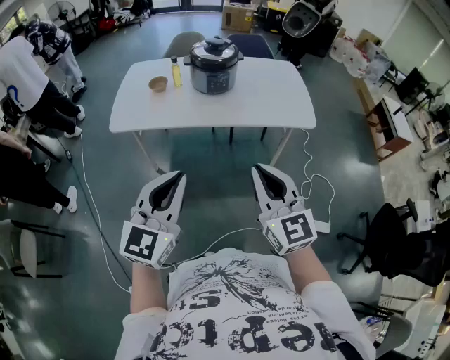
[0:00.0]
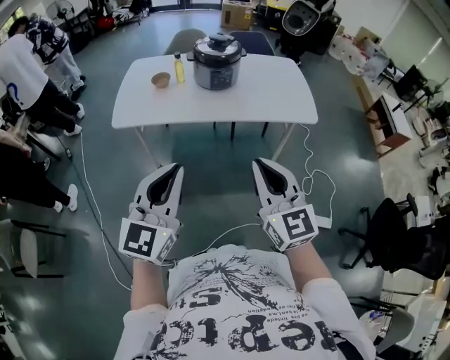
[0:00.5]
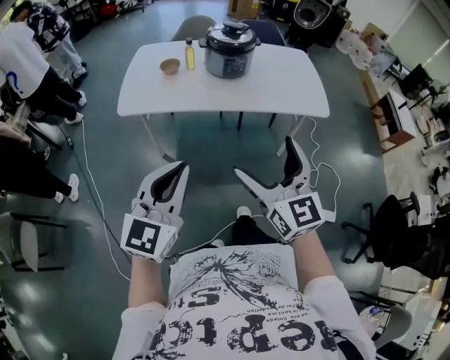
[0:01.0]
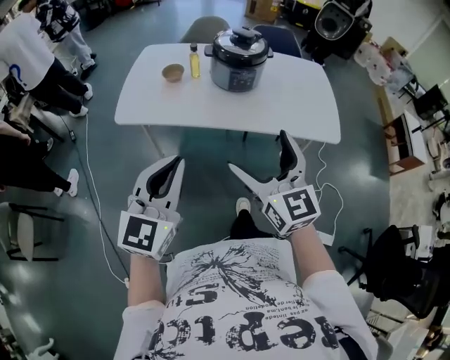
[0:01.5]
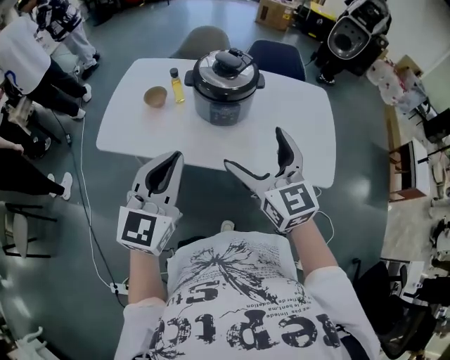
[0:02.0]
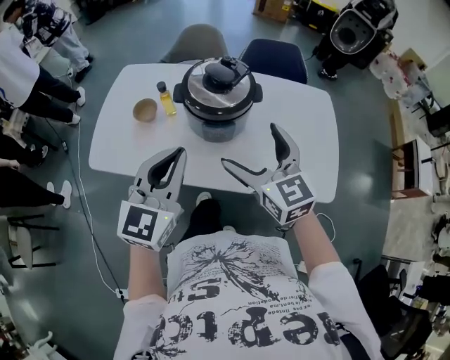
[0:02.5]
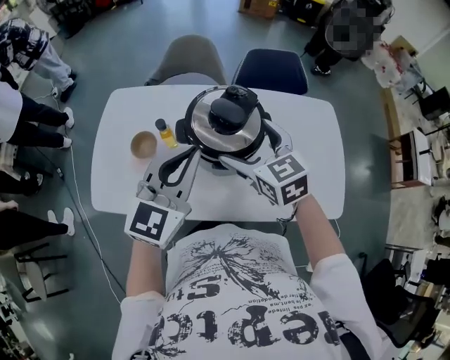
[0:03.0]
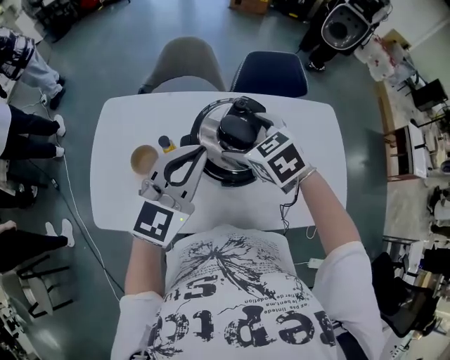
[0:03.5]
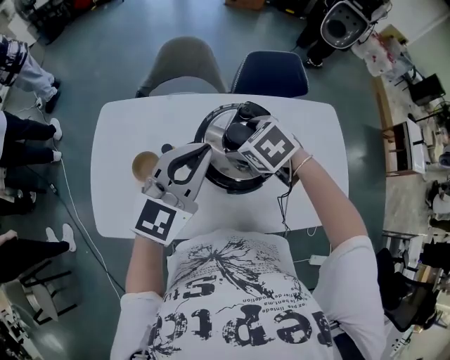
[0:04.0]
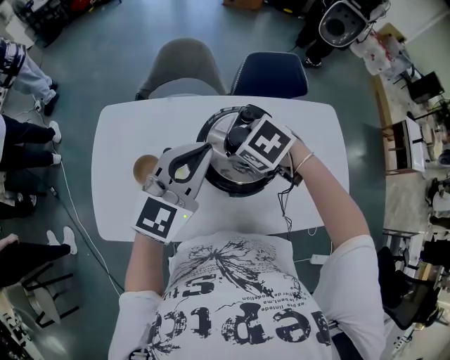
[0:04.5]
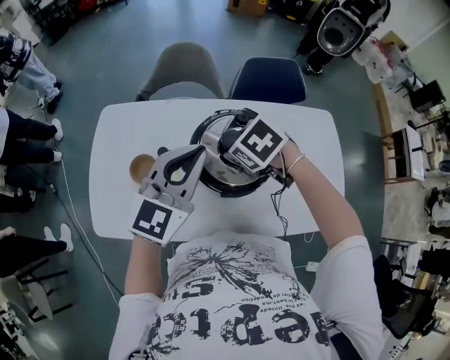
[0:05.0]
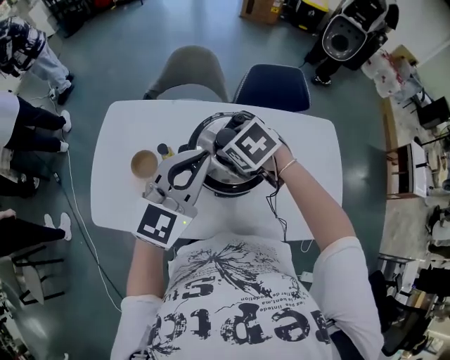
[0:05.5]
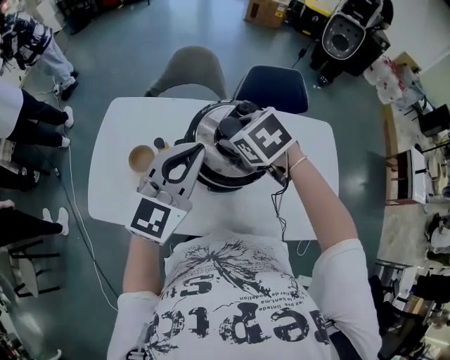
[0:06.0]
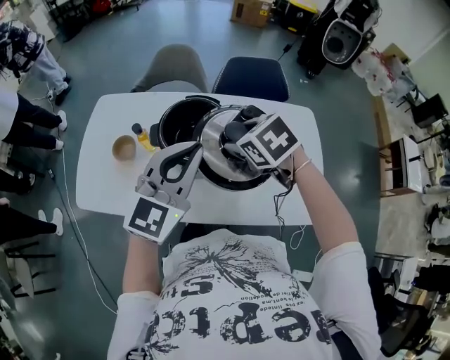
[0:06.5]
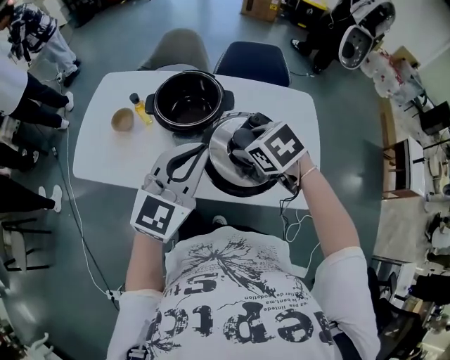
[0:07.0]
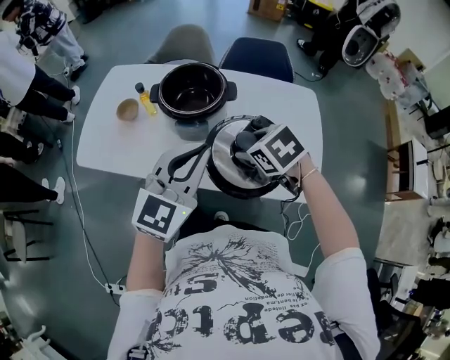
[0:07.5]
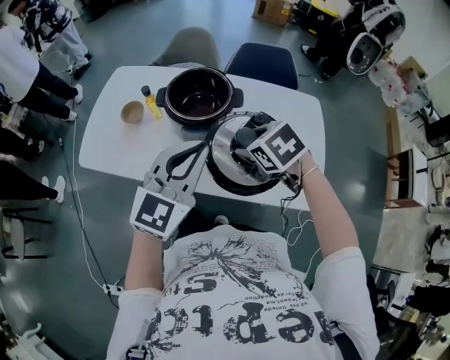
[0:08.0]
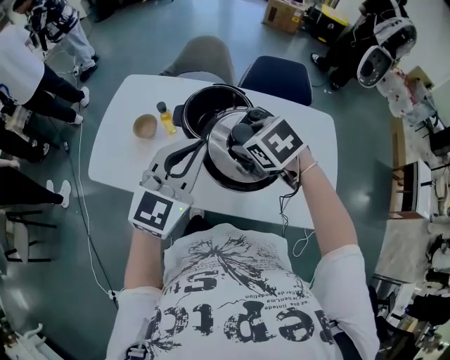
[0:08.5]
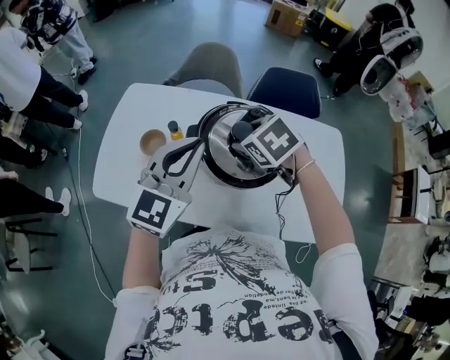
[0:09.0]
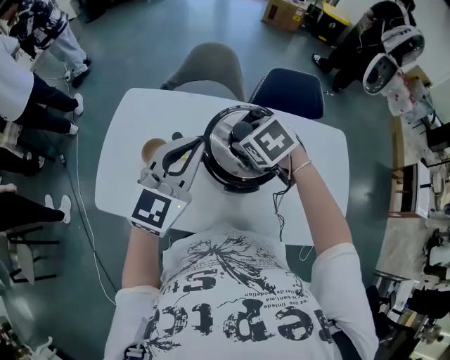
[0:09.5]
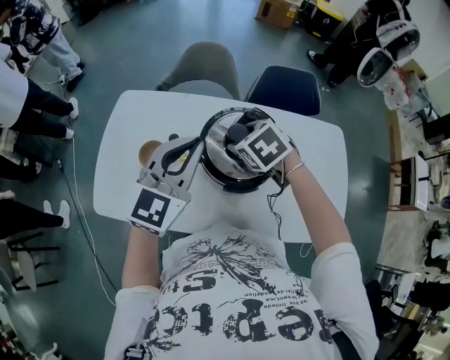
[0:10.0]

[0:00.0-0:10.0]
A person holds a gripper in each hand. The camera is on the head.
0:00.0 to 0:02.0: The grippers both shift forward by some 40 cm. The right gripper opens its fingers.
0:02.0 to 0:04.0: The pair of grippers is taken forward, approximately 40 cm. The right gripper points its fingers some 60 degrees further downward; the left gripper changes its angle by approximately 20 degrees.
0:04.0 to 0:06.0: The right gripper shifts approximately 10 cm upward. The left gripper shifts by roughly 5 cm.
0:06.0 to 0:08.0: Both grippers move backward and to the right, approximately 25 cm.
0:08.0 to 0:10.0: Both grippers move forward and to the left, approximately 30 cm.

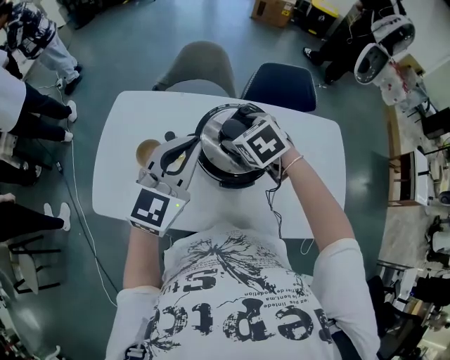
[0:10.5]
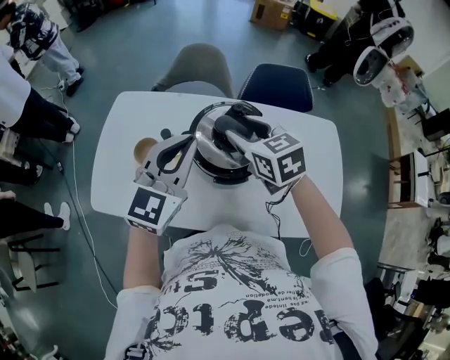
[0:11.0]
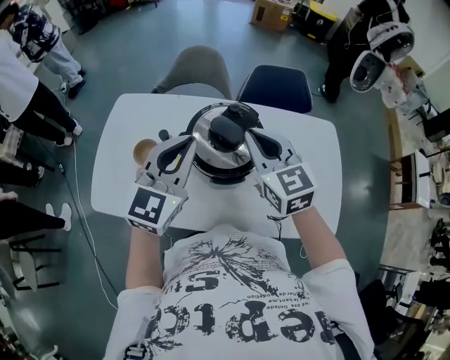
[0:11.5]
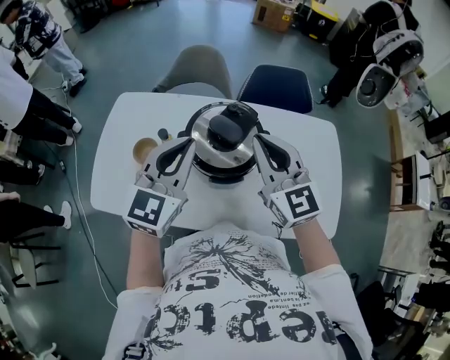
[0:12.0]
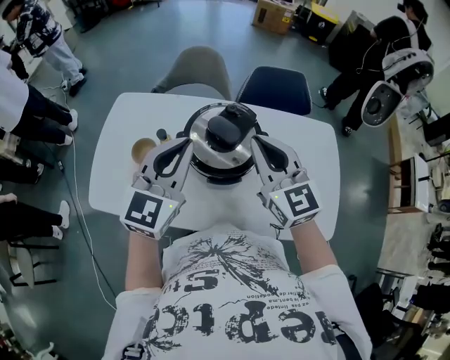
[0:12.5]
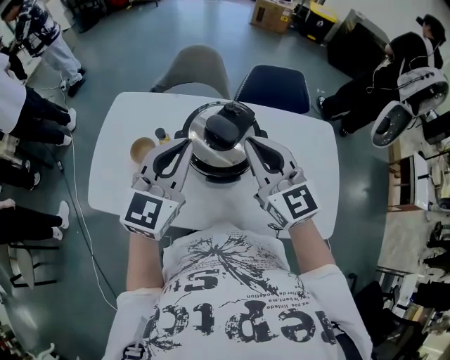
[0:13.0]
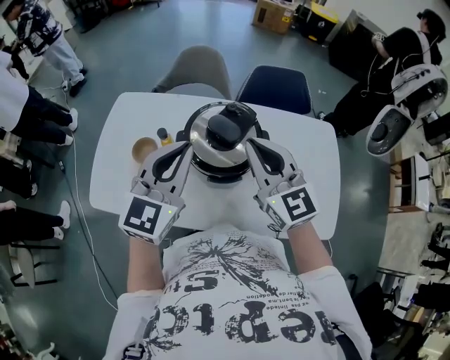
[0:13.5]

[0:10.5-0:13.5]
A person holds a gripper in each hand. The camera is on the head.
0:10.5 to 0:12.0: The right gripper travels upward, backward and to the right by about 15 cm, tilts its fingers approximately 50 degrees upward, and closes.
0:12.0 to 0:13.5: There are only small adjustments of the grippers.

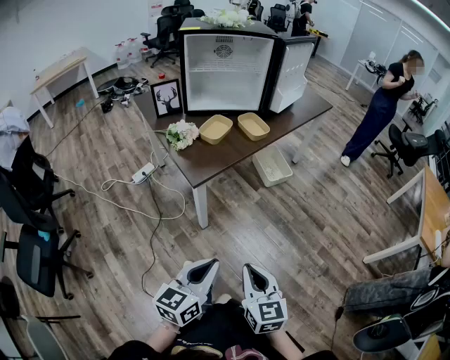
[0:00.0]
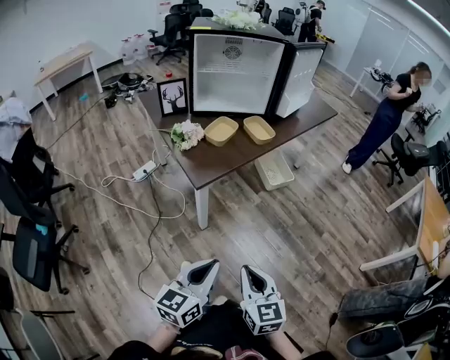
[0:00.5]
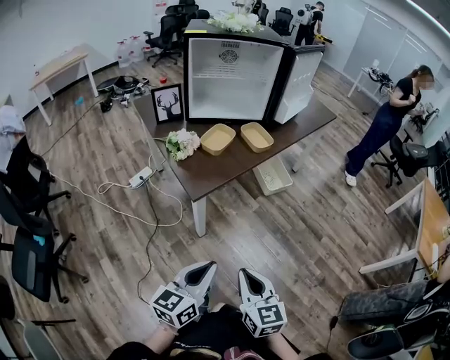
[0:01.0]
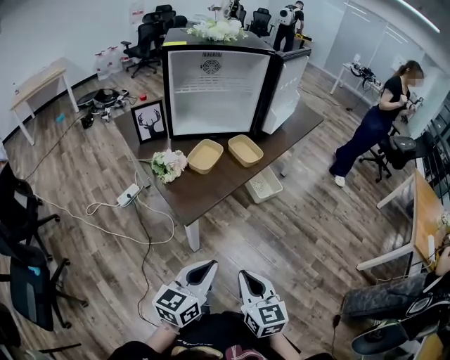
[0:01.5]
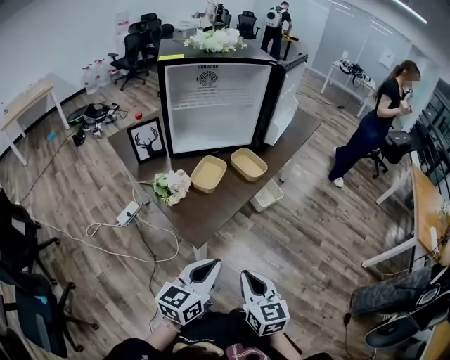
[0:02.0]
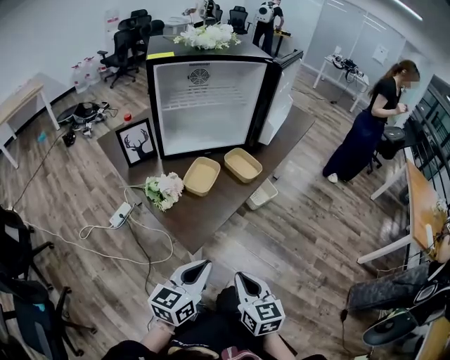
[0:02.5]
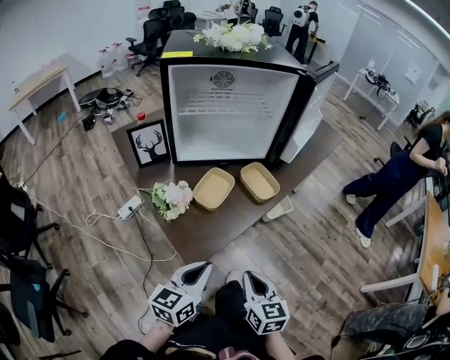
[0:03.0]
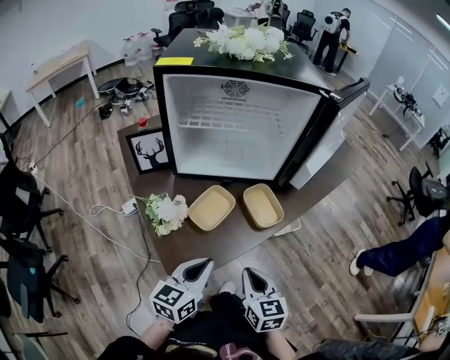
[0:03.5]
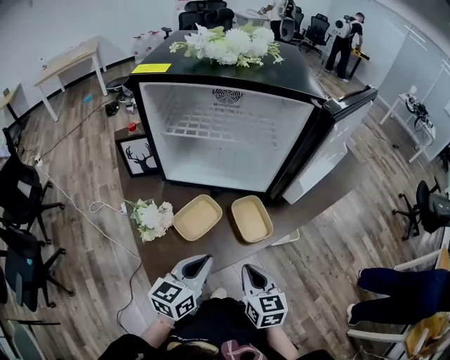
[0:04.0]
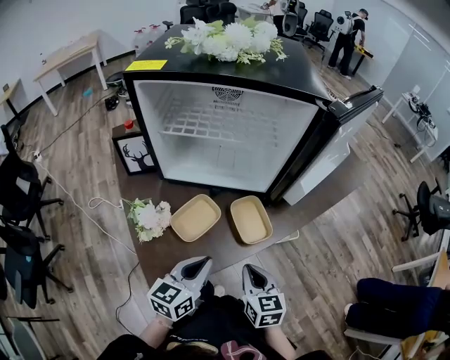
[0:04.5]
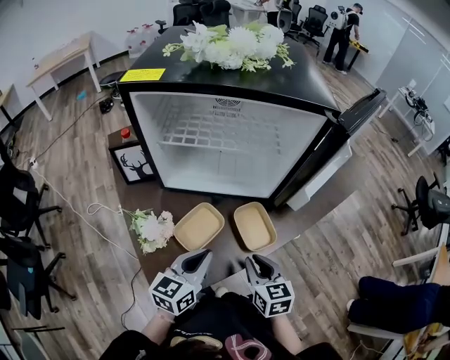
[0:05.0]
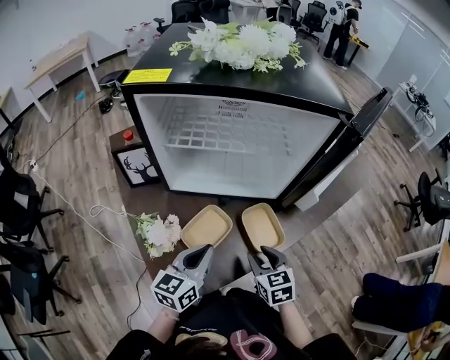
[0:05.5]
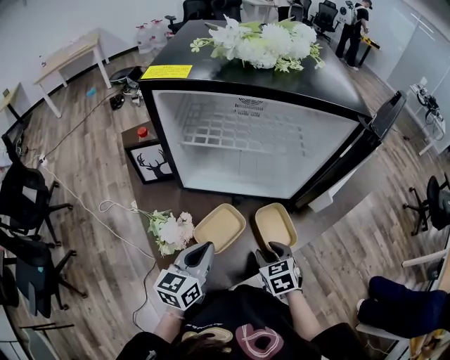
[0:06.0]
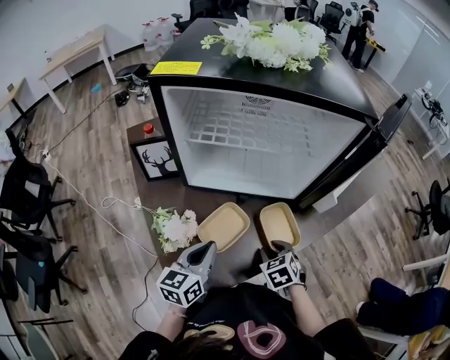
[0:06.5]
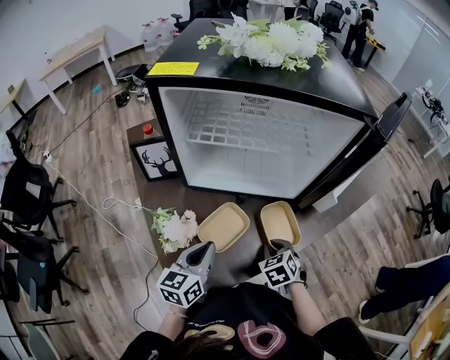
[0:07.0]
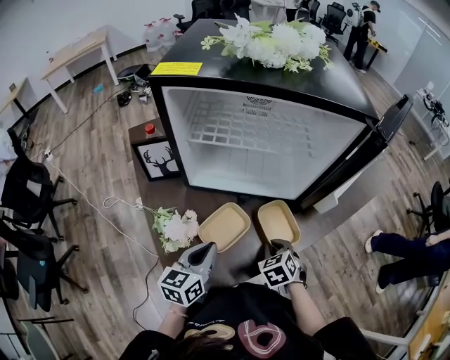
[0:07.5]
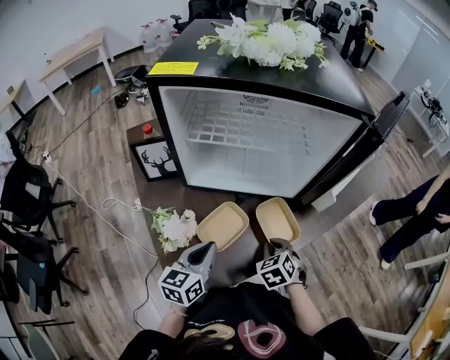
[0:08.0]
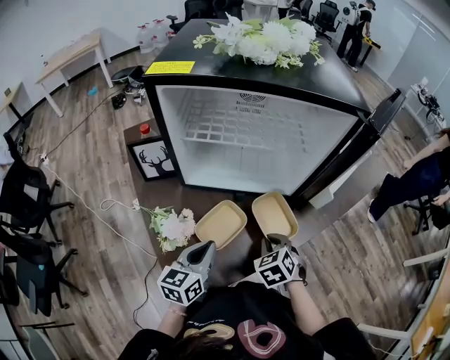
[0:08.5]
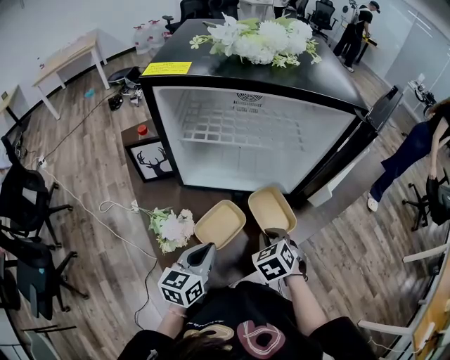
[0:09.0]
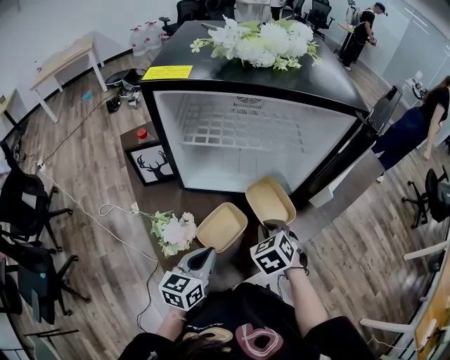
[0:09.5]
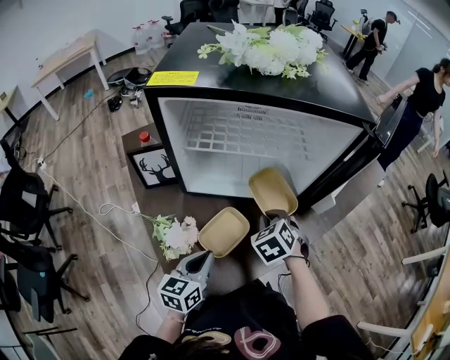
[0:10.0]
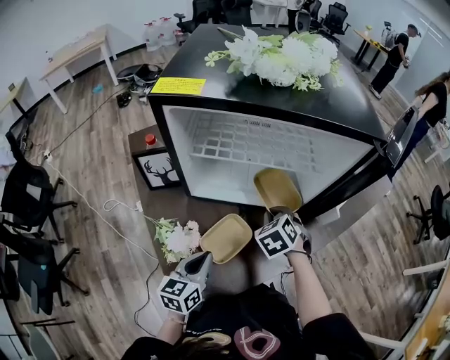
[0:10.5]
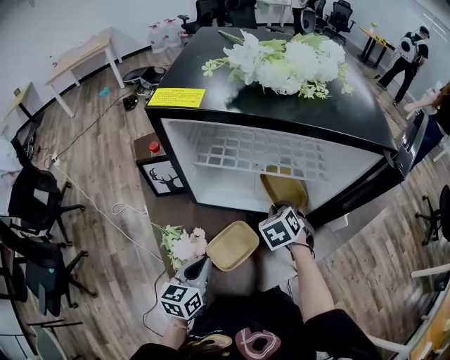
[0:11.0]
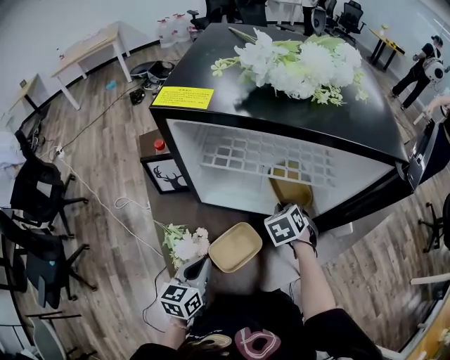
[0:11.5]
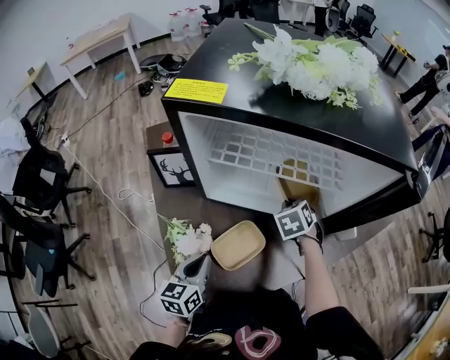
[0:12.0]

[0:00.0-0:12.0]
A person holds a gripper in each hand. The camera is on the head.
0:00.0 to 0:02.0: The grippers both shift forward and to the left by approximately 20 cm.
0:02.0 to 0:04.0: Both grippers move forward, about 30 cm. The left gripper changes its angle by about 20 degrees.
0:04.0 to 0:06.0: The right gripper goes roughly 15 cm forward and downward, turns by roughly 30 degrees, and opens up. Meanwhile the left gripper shifts about 10 cm to the left and forward.
0:06.0 to 0:08.0: The right gripper closes.
0:08.0 to 0:10.0: The right gripper goes roughly 10 cm forward, upward and to the left.
0:10.0 to 0:12.0: The left gripper goes roughly 5 cm to the left. Meanwhile the right gripper shifts roughly 10 cm forward.

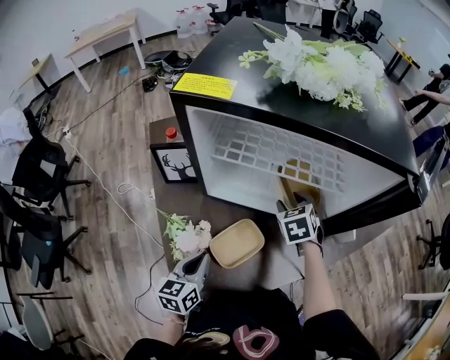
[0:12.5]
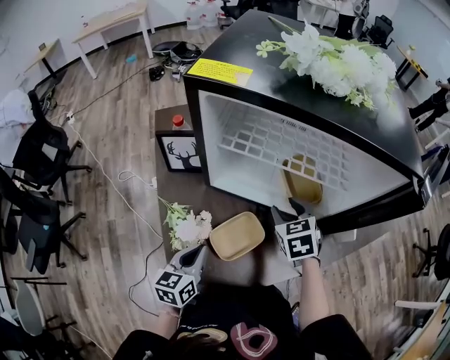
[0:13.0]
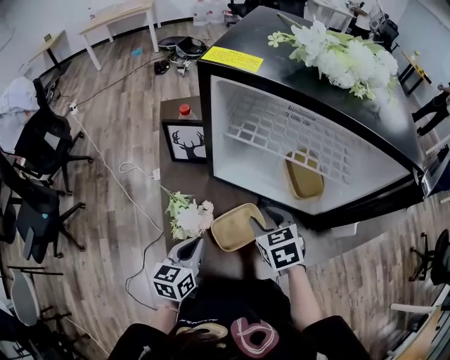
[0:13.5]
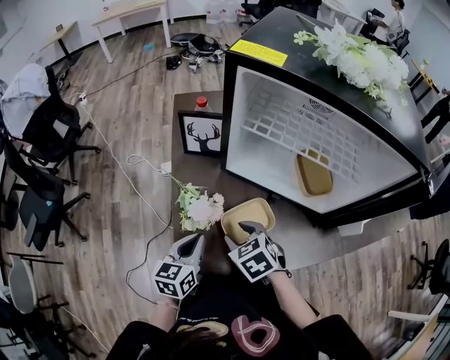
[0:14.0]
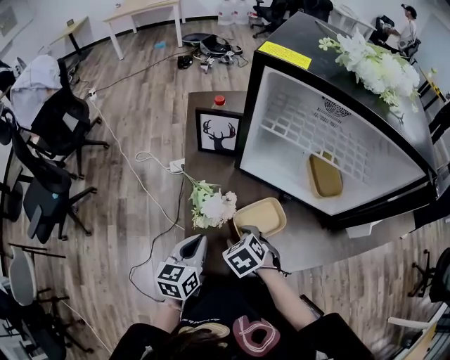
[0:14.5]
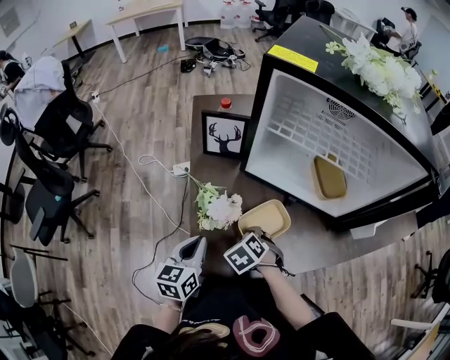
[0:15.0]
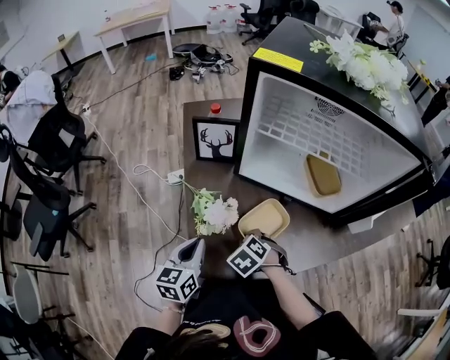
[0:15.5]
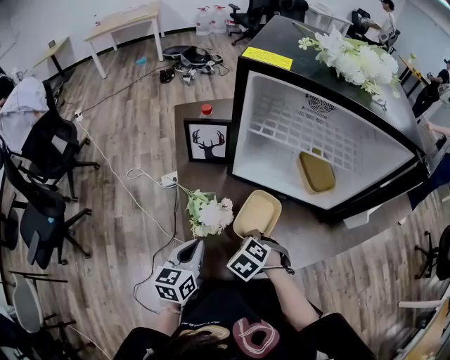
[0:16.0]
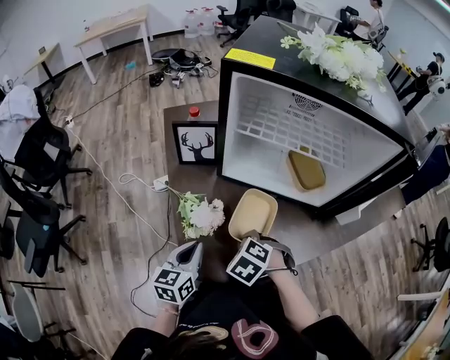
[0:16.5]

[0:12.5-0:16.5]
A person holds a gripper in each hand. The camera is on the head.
0:12.5 to 0:14.5: The right gripper shifts by approximately 30 cm, and rotates approximately 30 degrees. Meanwhile the left gripper shifts by about 10 cm.
0:14.5 to 0:16.5: The right gripper ends up about 5 cm from where it was, and closes its fingers.
